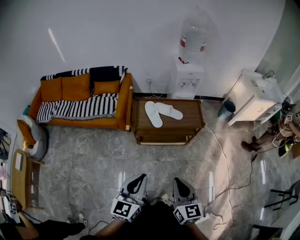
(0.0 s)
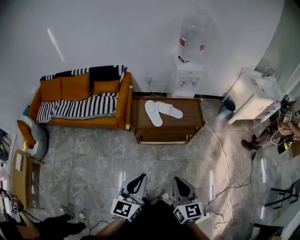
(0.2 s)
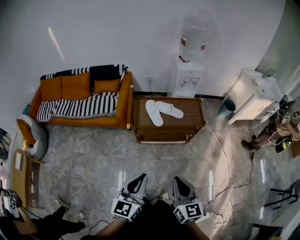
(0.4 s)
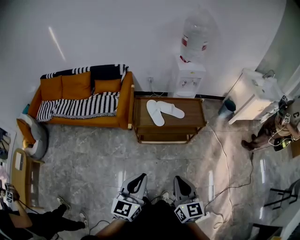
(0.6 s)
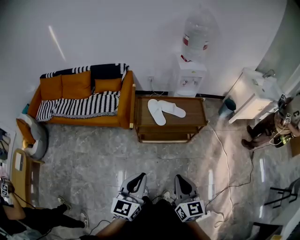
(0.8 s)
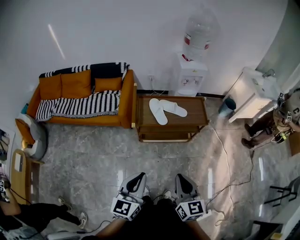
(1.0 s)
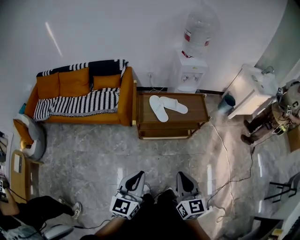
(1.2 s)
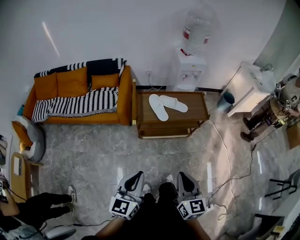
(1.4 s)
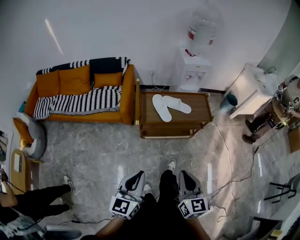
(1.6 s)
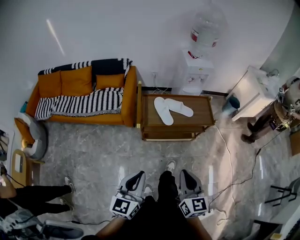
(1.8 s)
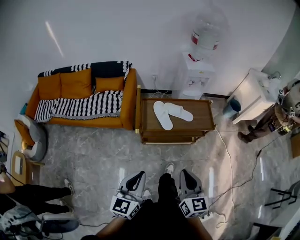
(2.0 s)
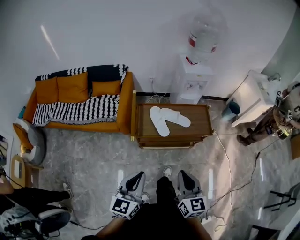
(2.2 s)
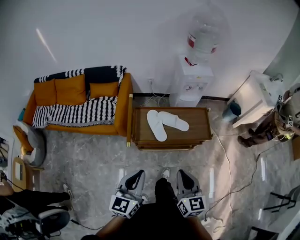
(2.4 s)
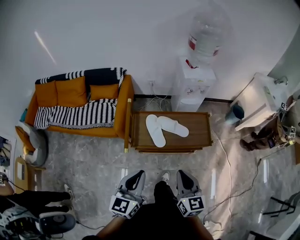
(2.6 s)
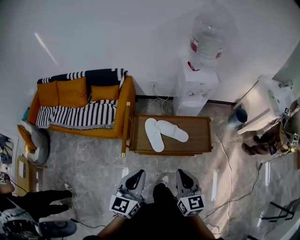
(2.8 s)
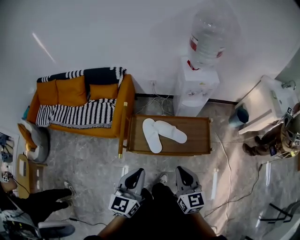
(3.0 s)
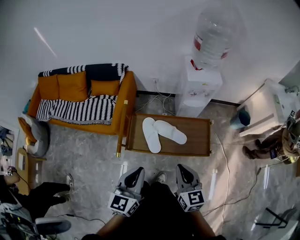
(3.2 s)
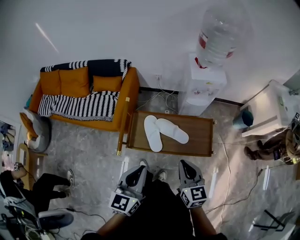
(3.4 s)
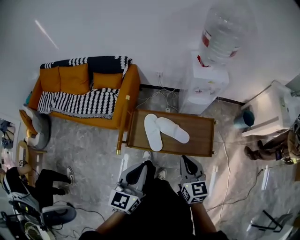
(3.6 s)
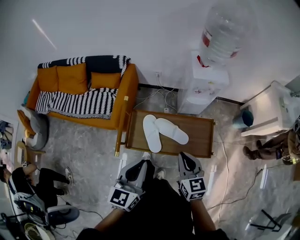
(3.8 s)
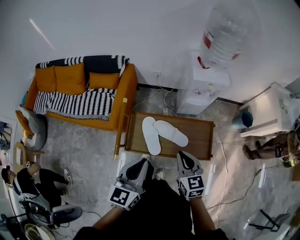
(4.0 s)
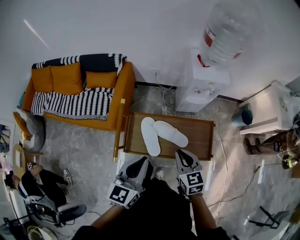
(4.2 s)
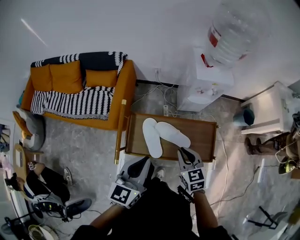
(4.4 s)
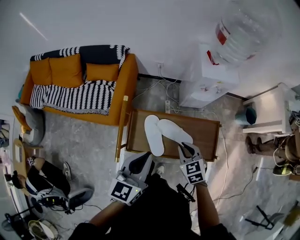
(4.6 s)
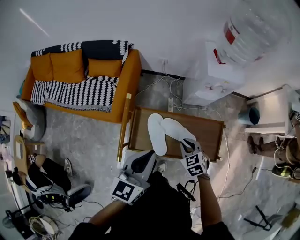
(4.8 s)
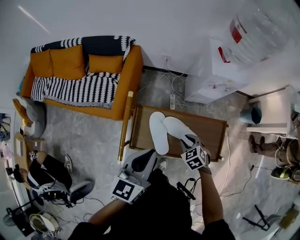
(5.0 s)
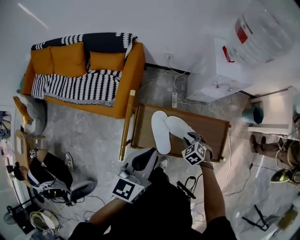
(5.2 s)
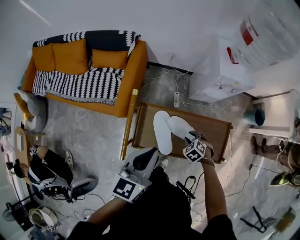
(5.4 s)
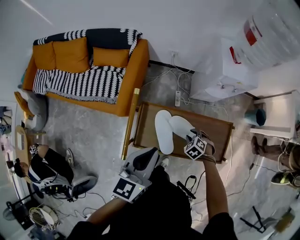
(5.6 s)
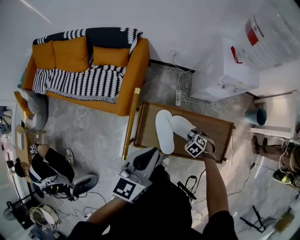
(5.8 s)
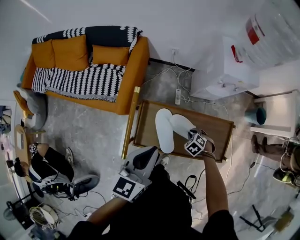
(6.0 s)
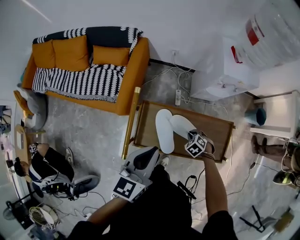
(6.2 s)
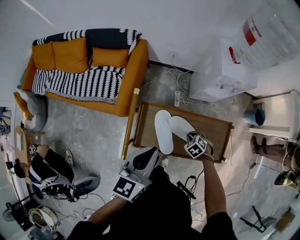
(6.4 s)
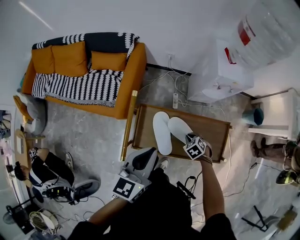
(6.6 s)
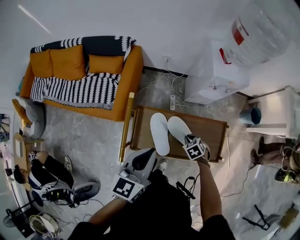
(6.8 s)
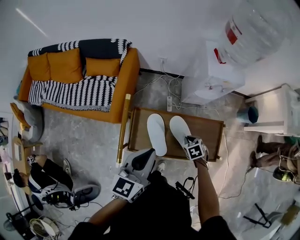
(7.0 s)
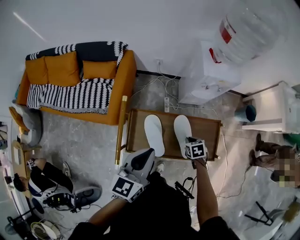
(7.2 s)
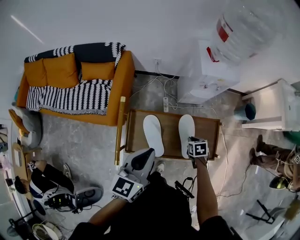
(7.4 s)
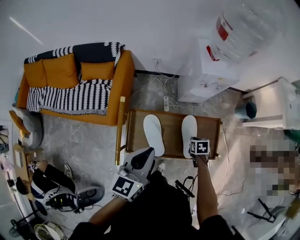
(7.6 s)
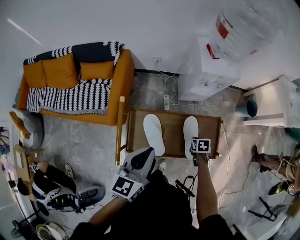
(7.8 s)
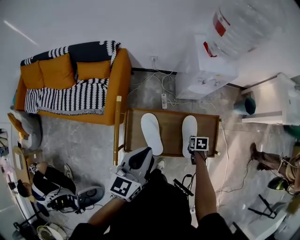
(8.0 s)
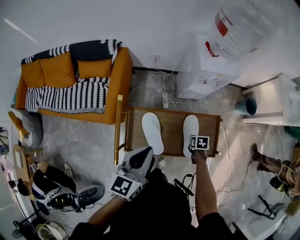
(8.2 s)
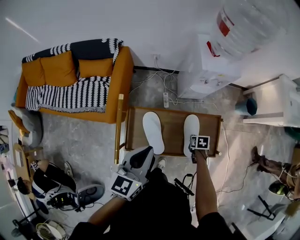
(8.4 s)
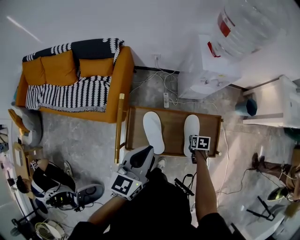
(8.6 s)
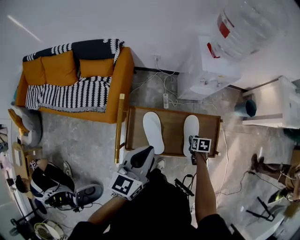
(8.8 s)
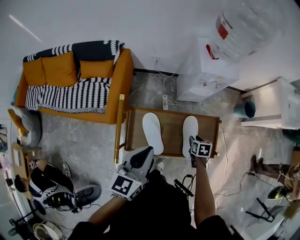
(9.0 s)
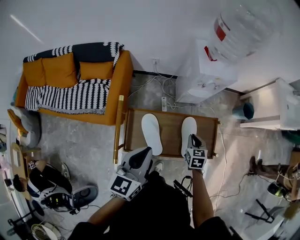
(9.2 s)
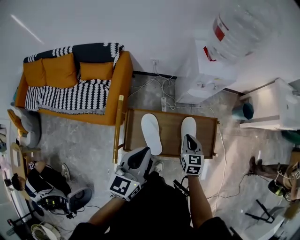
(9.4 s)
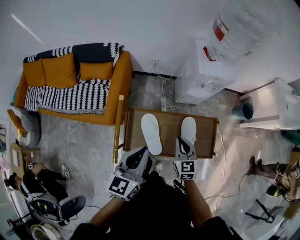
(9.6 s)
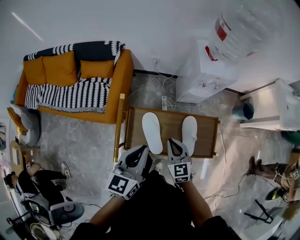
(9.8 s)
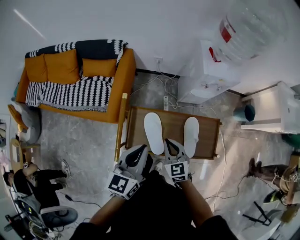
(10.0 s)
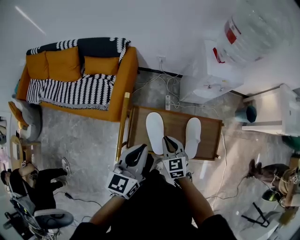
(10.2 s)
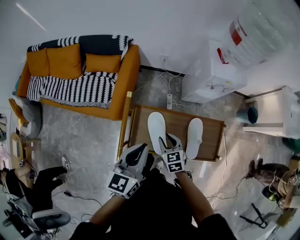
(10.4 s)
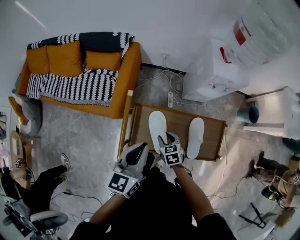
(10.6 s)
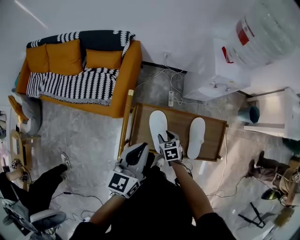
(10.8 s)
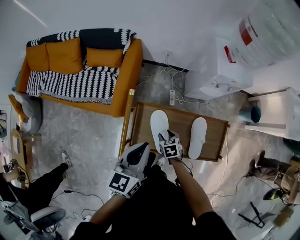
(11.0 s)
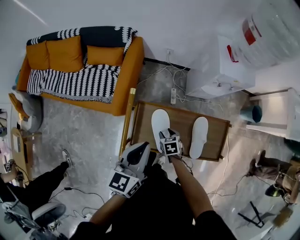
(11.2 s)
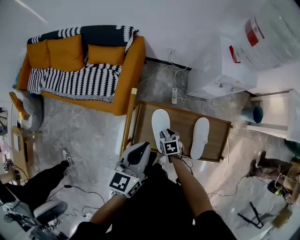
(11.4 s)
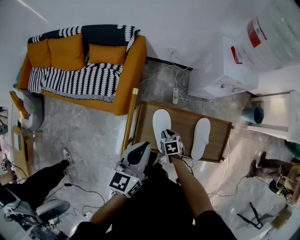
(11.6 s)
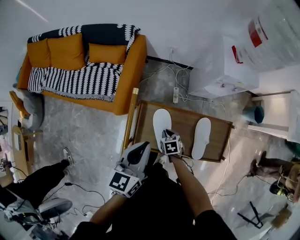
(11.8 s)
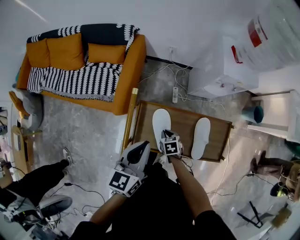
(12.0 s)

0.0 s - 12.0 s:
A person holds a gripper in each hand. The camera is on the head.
0.0 s - 1.6 s: The left gripper travels to the left by about 10 cm; the right gripper goes roughly 5 cm to the left.
1.6 s - 3.0 s: The left gripper shifts approximately 30 cm forward and to the right. Meanwhile the right gripper moves forward, approximately 30 cm.
3.0 s - 4.4 s: The left gripper moves forward, roughly 15 cm, while the right gripper shifts approximately 20 cm forward and downward, and swivels approximately 20 degrees.
4.4 s - 6.0 s: The left gripper moves approximately 10 cm, while the right gripper goes some 25 cm downward, and points its fingers roughly 40 degrees further downward.
6.0 s - 7.6 s: The right gripper changes place by roughly 10 cm, and rotates around the line of its fingers by some 60 degrees, clockwise from behind.
7.6 s - 9.0 s: The right gripper opens.
9.0 s - 10.4 s: The left gripper is displaced to the left by about 5 cm; the right gripper shifts roughly 25 cm to the left, turns by approximately 40 degrees, and closes, then opens again.
10.4 s - 12.0 s: The right gripper goes some 15 cm downward, and swivels approximately 20 degrees.

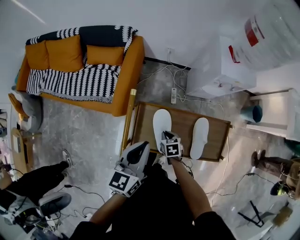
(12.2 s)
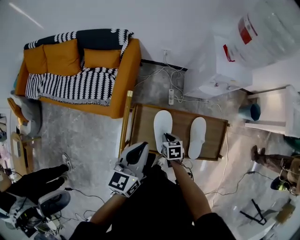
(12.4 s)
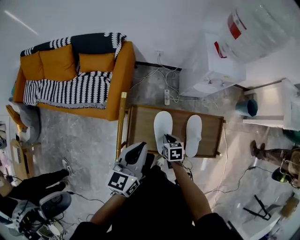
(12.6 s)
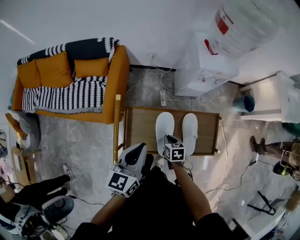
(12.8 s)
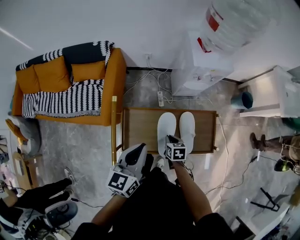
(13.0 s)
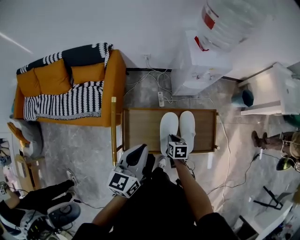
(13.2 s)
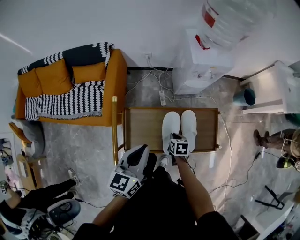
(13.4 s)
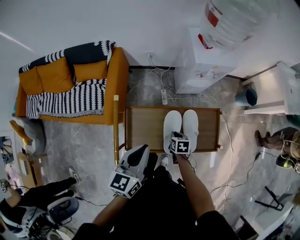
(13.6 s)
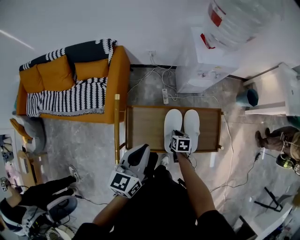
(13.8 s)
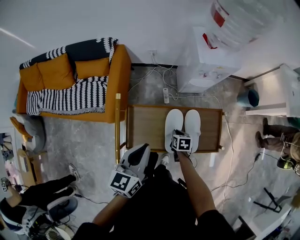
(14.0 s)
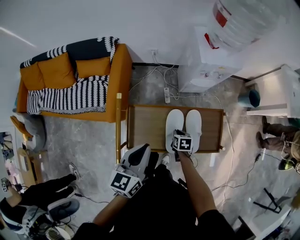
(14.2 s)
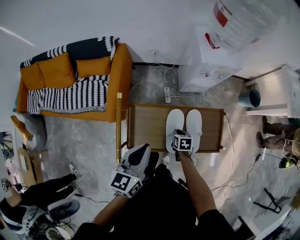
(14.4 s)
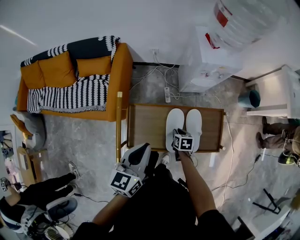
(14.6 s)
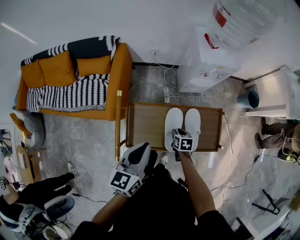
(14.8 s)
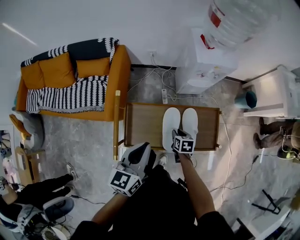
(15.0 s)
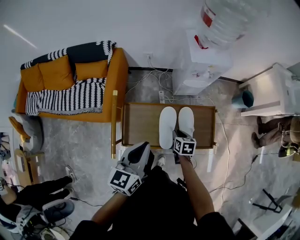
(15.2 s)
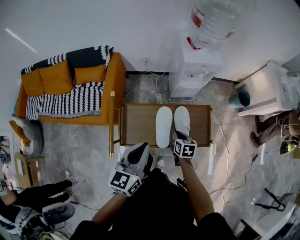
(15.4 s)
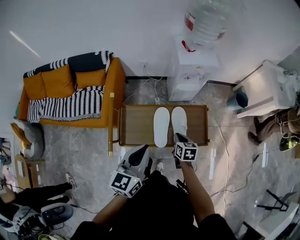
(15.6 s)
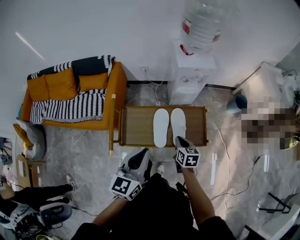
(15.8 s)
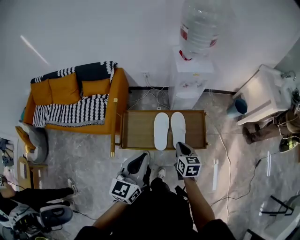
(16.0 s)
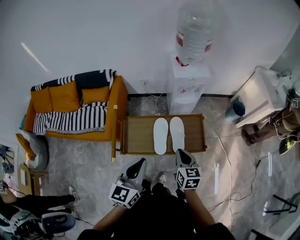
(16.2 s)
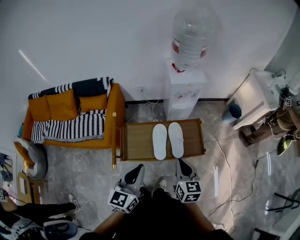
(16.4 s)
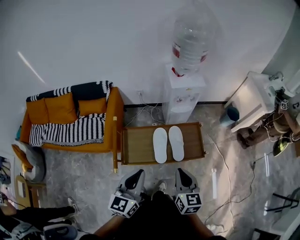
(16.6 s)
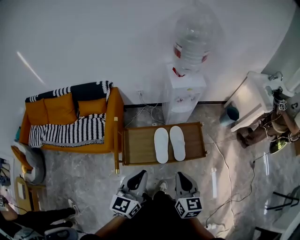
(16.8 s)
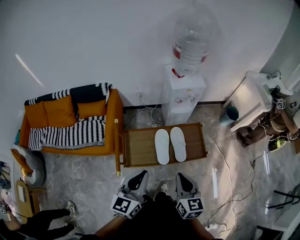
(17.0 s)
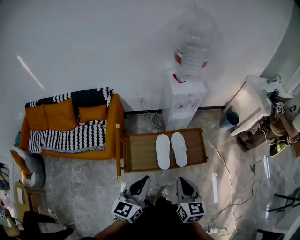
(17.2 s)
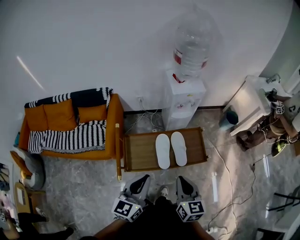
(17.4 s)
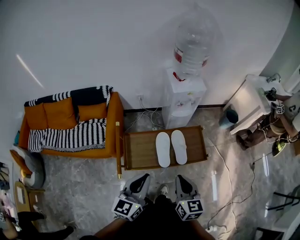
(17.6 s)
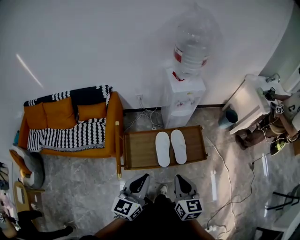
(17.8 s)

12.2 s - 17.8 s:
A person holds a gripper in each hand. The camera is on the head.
12.2 s - 13.6 s: The left gripper moves to the right, some 5 cm. The right gripper goes about 15 cm to the right, and turns by approximately 20 degrees.
13.6 s - 15.0 s: The grippers make only small movements.
15.0 s - 16.4 s: The right gripper travels upward and backward by roughly 35 cm, tilts its fingers about 30 degrees upward, and closes its fingers, while the left gripper travels backward and upward by approximately 15 cm.
16.4 s - 17.8 s: The right gripper shifts roughly 5 cm to the left and backward.

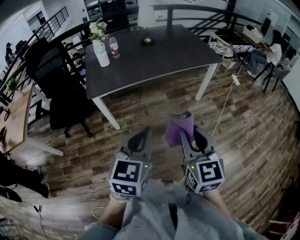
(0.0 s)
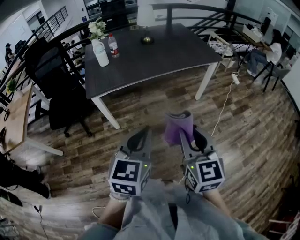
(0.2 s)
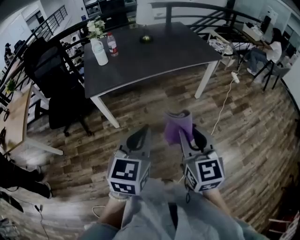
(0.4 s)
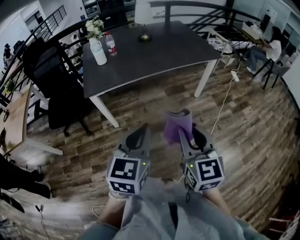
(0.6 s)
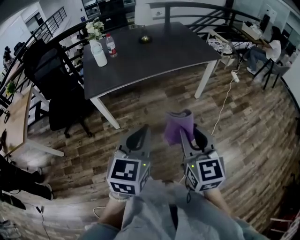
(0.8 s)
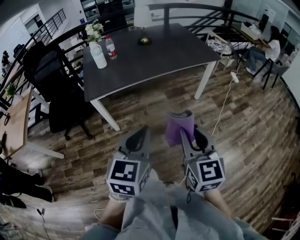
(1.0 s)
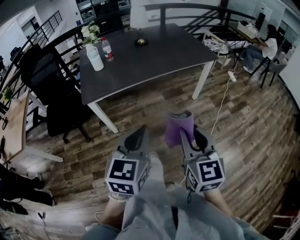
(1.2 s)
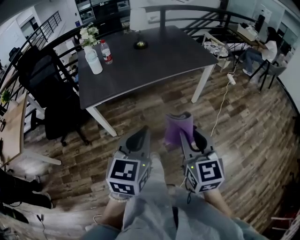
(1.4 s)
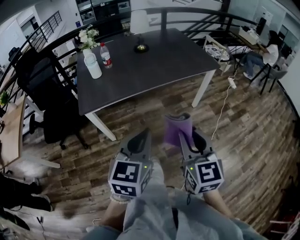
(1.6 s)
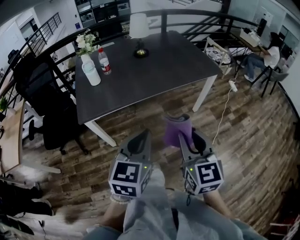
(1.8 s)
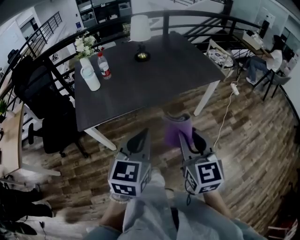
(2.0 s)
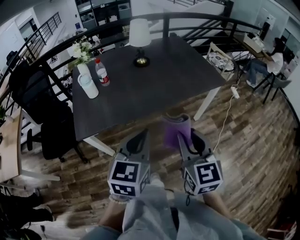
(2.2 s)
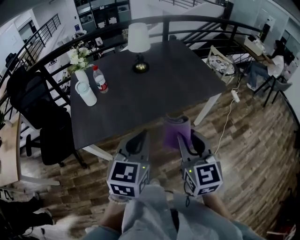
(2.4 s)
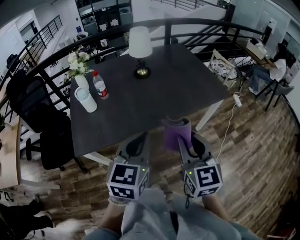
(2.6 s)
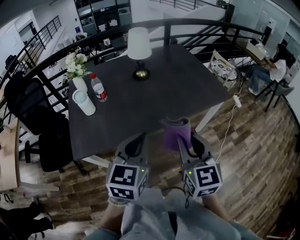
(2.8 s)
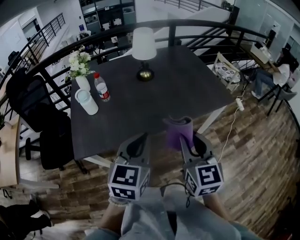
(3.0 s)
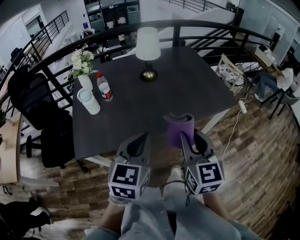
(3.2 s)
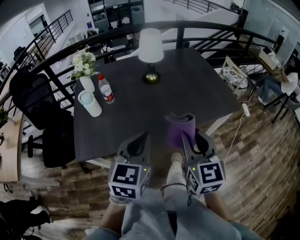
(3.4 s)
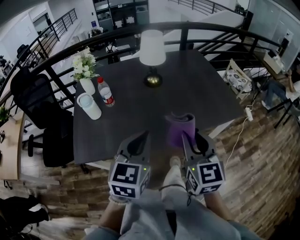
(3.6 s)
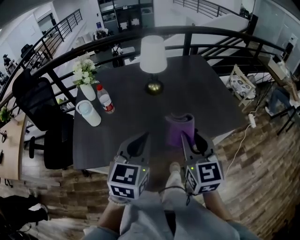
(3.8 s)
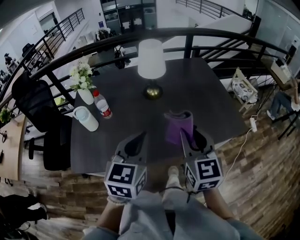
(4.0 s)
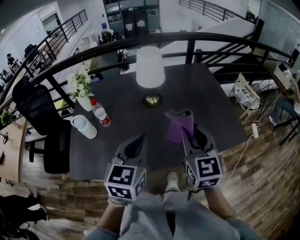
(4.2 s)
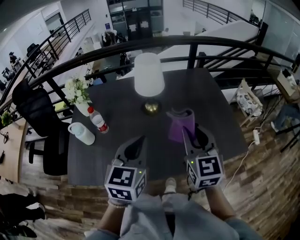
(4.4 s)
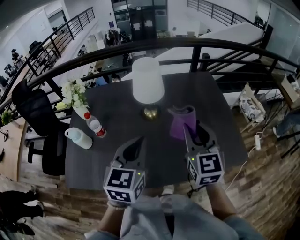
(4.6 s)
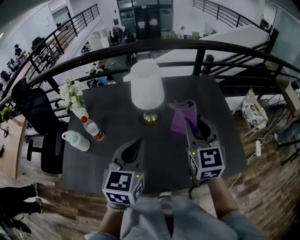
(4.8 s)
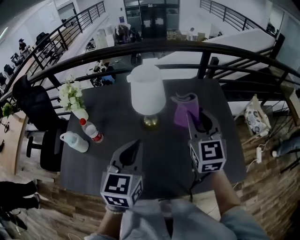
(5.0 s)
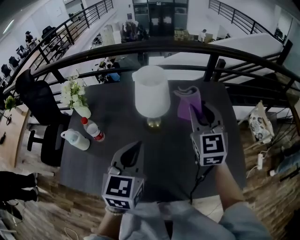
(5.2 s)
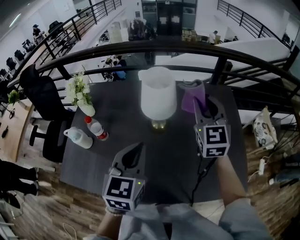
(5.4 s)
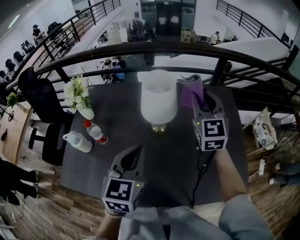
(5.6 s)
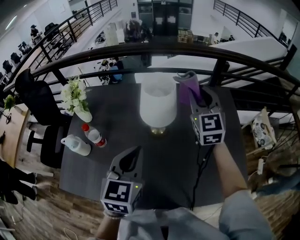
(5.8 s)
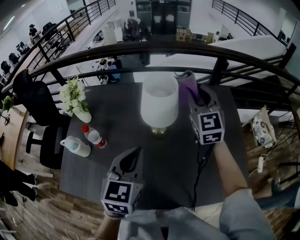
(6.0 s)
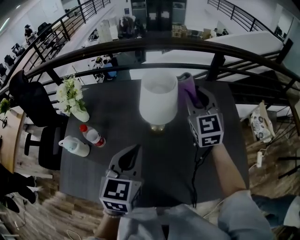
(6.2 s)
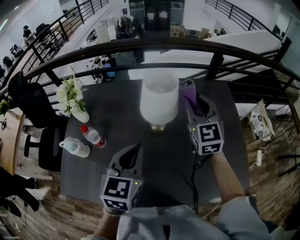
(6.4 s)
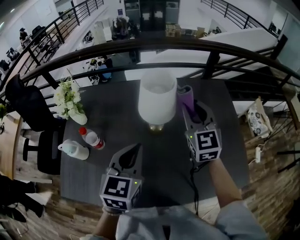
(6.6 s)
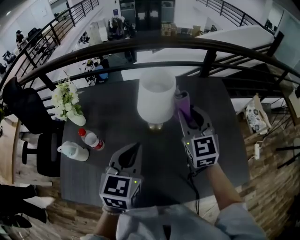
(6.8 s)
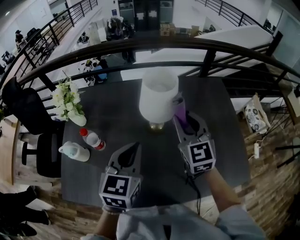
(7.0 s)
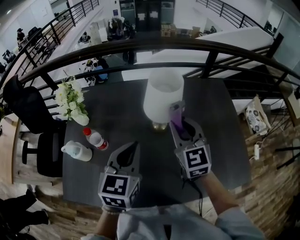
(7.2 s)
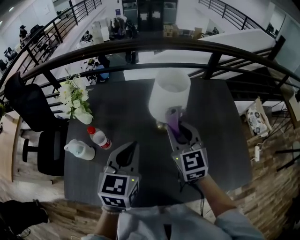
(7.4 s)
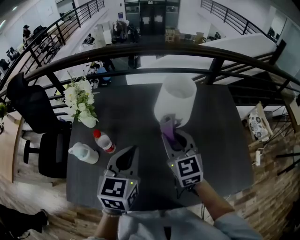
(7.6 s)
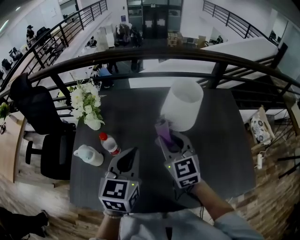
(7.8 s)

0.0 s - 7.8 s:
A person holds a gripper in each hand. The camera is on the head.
0.0 s - 1.6 s: The grippers both shift forward by some 10 cm.
1.6 s - 3.2 s: Both grippers move forward, some 30 cm.
3.2 s - 4.6 s: Both grippers move forward, some 30 cm.
4.6 s - 6.2 s: The left gripper heads forward, covering approximately 10 cm. The right gripper heads forward, covering about 25 cm.
6.2 s - 7.8 s: The left gripper is displaced to the left by approximately 10 cm; the right gripper travels to the left and backward by approximately 20 cm.
